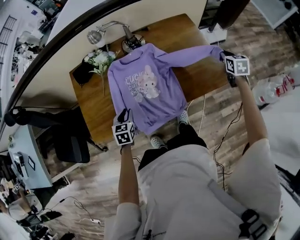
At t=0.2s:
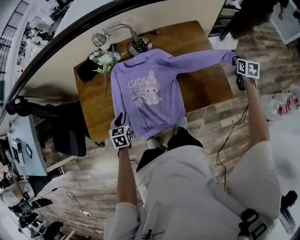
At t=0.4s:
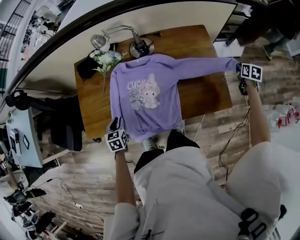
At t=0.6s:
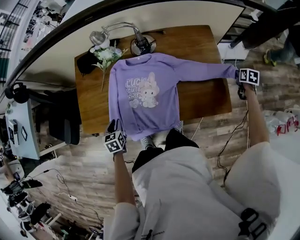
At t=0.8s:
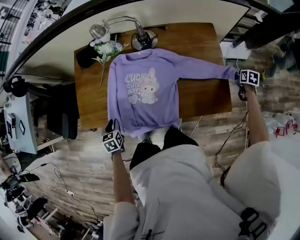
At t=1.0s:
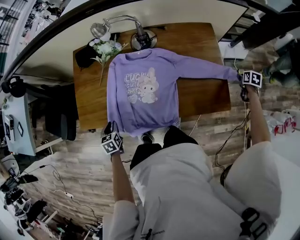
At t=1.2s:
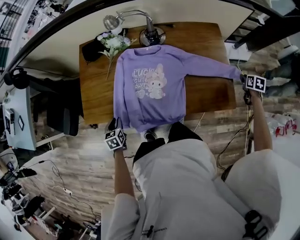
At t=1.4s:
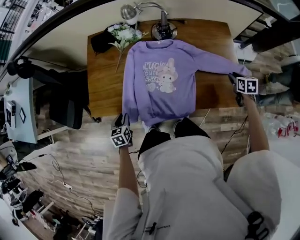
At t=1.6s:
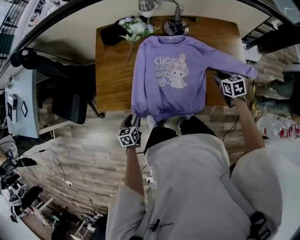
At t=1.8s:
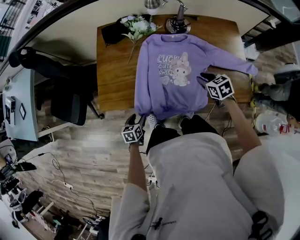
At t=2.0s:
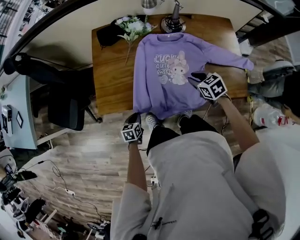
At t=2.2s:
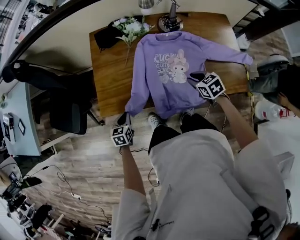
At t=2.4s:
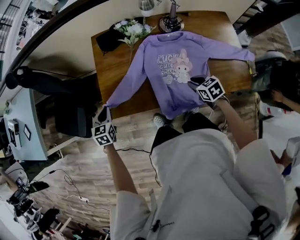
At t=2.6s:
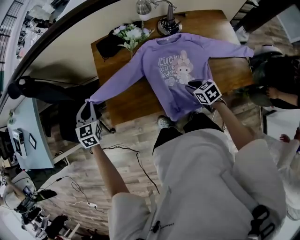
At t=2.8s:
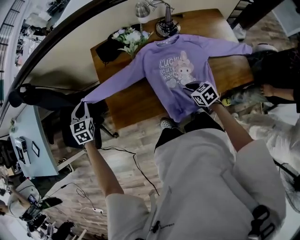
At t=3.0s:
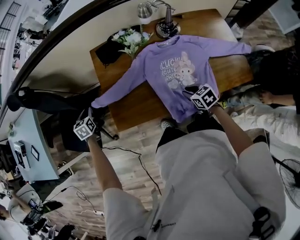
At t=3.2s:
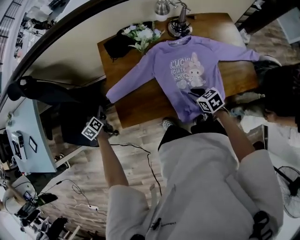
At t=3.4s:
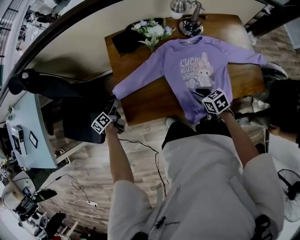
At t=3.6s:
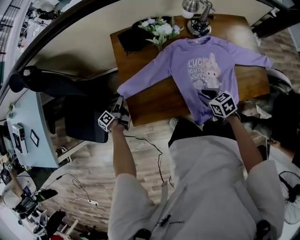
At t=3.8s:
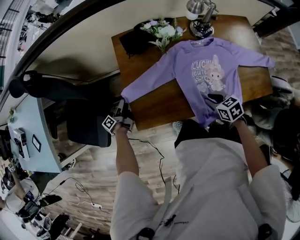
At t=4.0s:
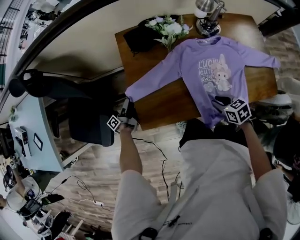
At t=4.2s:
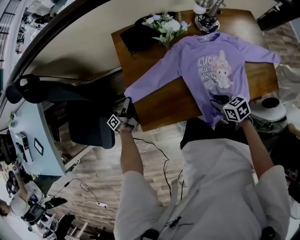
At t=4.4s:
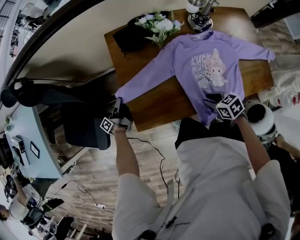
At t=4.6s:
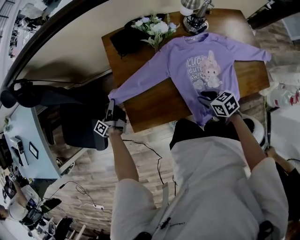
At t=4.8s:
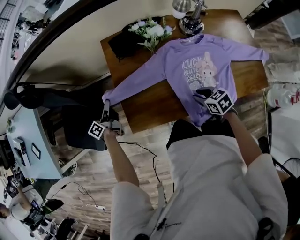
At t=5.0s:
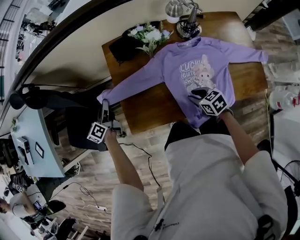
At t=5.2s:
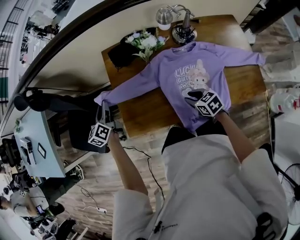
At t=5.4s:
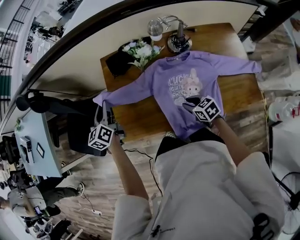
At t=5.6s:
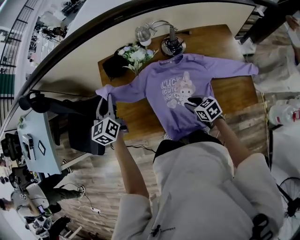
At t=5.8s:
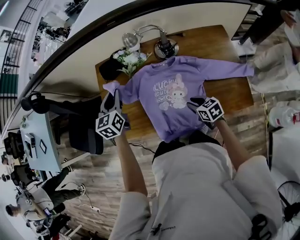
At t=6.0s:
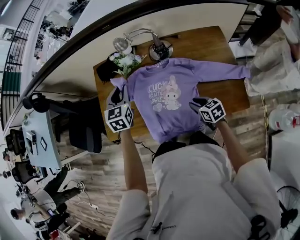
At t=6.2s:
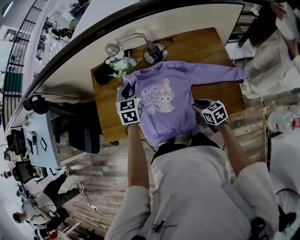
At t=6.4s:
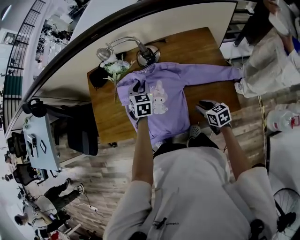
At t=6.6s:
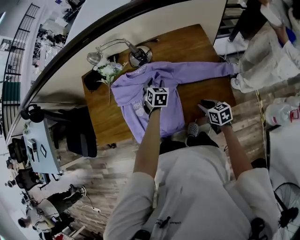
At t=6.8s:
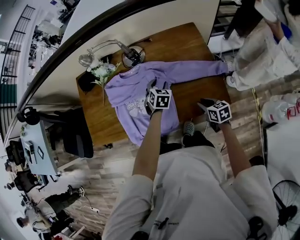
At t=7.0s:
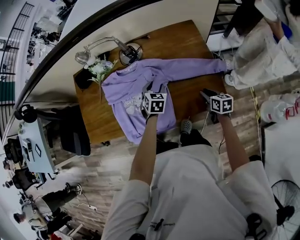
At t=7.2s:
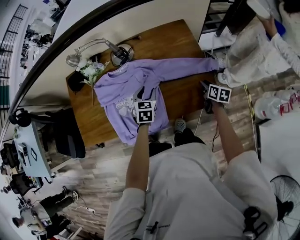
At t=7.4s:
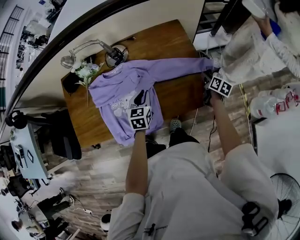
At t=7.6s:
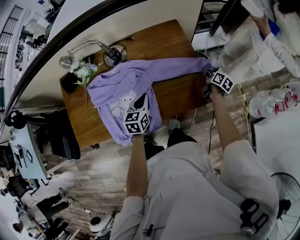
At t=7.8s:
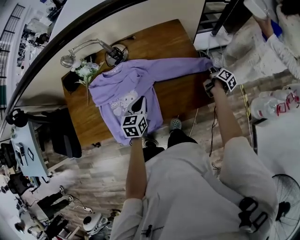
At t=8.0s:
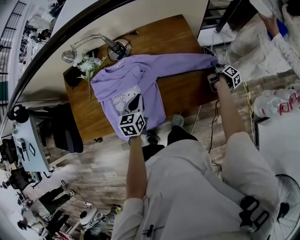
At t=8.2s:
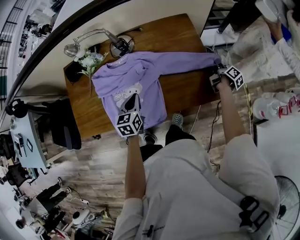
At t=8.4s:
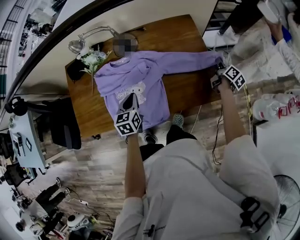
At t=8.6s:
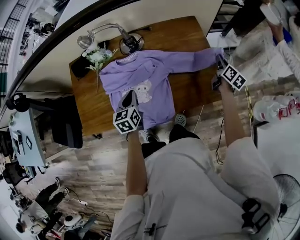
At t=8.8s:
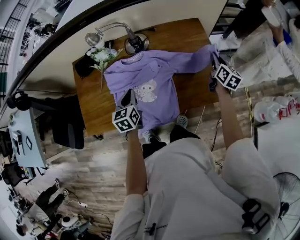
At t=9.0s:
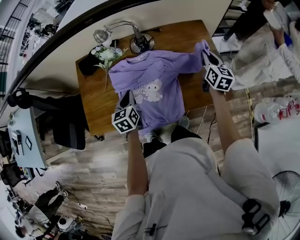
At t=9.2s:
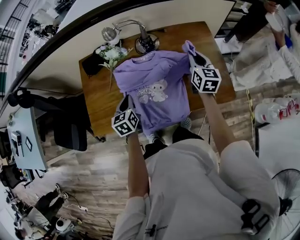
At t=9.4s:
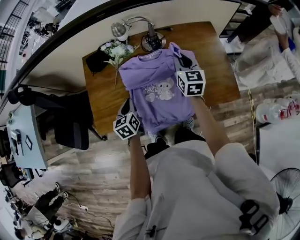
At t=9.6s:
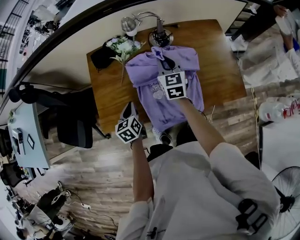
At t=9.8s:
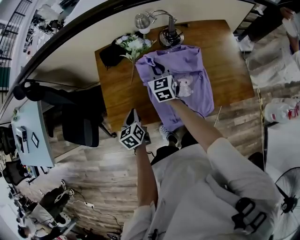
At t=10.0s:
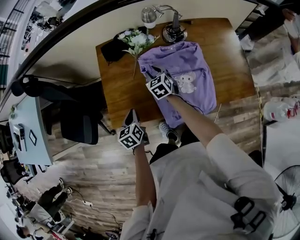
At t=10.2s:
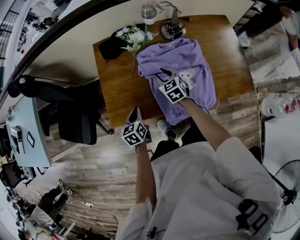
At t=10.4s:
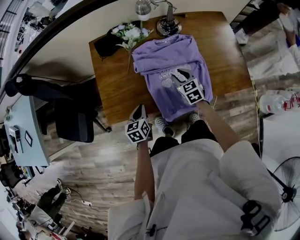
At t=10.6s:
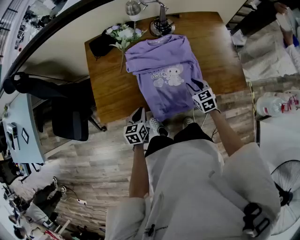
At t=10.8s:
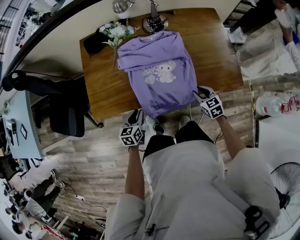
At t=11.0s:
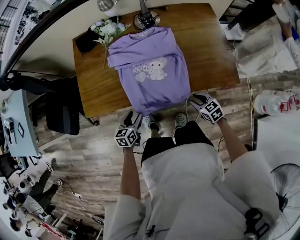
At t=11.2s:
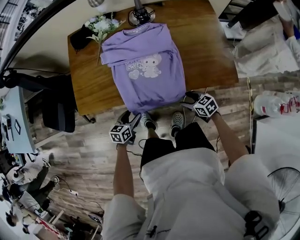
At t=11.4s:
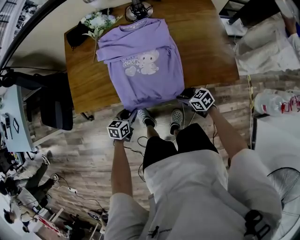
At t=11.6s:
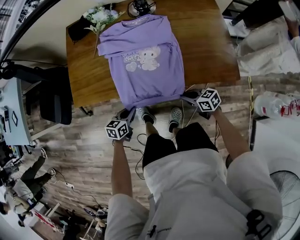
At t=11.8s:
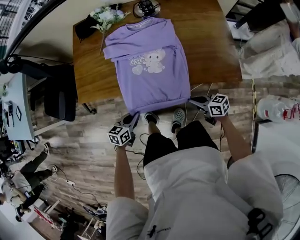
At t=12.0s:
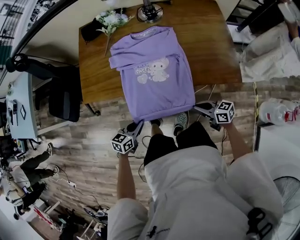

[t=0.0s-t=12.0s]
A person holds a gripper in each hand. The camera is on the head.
t=0.0s to t=1.6s: The left gripper ends up some 20 cm from where it was, and changes its angle by about 30 degrees; the right gripper shifts by roughly 25 cm, and changes its angle by some 30 degrees.
t=1.6s to t=3.0s: The left gripper goes roughly 40 cm forward and to the left, and closes up. Meanwhile the right gripper goes approximately 25 cm to the left.
t=3.0s to t=4.4s: The left gripper is displaced downward by some 15 cm, rolls counterclockwise, seen from behind, by approximately 80 degrees, and opens, then closes again, while the right gripper is displaced to the left by approximately 5 cm.
t=4.4s to t=6.0s: The left gripper shifts approximately 50 cm to the right and upward, and rotates around the line of its fingers by about 100 degrees, clockwise from behind; the right gripper moves to the right, roughly 25 cm.
t=6.0s to t=7.6s: The right gripper shifts by some 40 cm, rotates approximately 70 degrees, and opens; the left gripper moves some 35 cm, rotates approximately 30 degrees, and opens, then closes once more.
t=7.6s to t=9.0s: The right gripper travels to the left and upward by some 30 cm, turns by some 40 degrees, and closes its fingers. Meanwhile the left gripper travels to the left by some 25 cm, and turns by some 20 degrees.
t=9.0s to t=10.4s: The right gripper shifts roughly 40 cm to the left and downward, rotates roughly 40 degrees, and opens up. The left gripper heads to the left, downward and backward, covering approximately 20 cm.
t=10.4s to t=12.0s: Both grippers move backward and to the right, about 30 cm. The right gripper swivels some 50 degrees, and closes up; the left gripper changes its angle by roughly 20 degrees, and opens, then closes once more.

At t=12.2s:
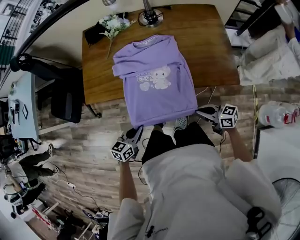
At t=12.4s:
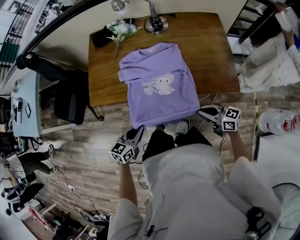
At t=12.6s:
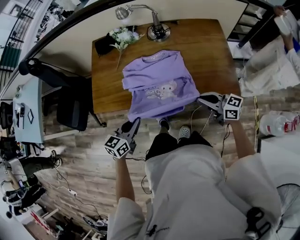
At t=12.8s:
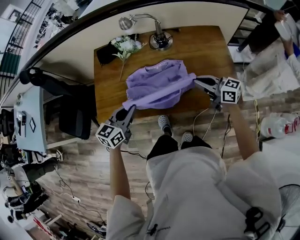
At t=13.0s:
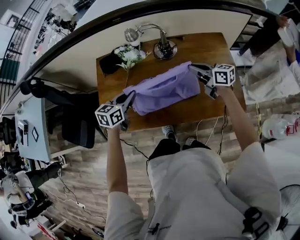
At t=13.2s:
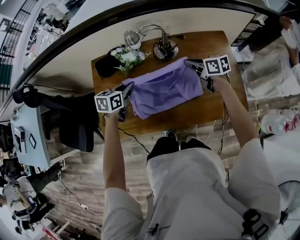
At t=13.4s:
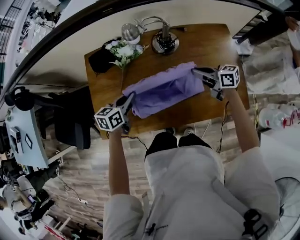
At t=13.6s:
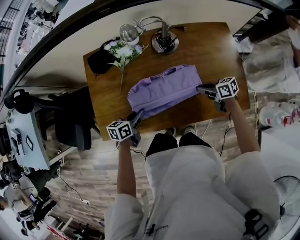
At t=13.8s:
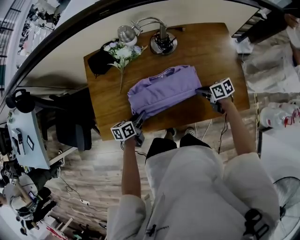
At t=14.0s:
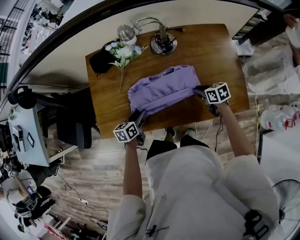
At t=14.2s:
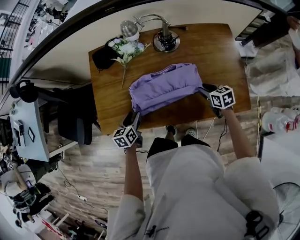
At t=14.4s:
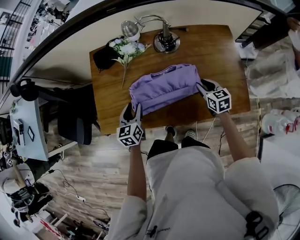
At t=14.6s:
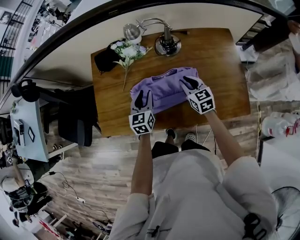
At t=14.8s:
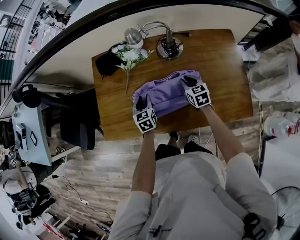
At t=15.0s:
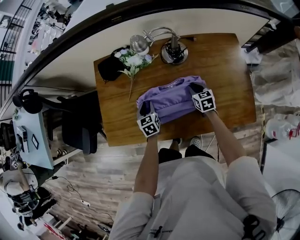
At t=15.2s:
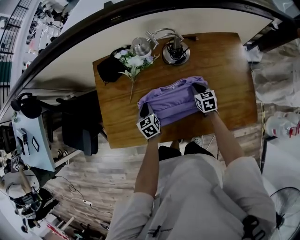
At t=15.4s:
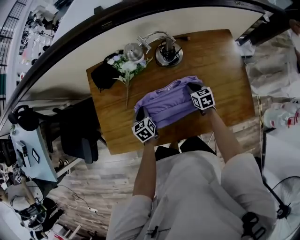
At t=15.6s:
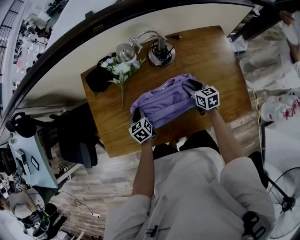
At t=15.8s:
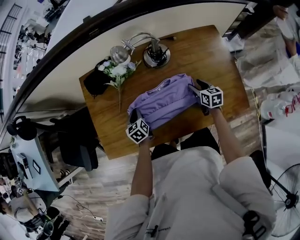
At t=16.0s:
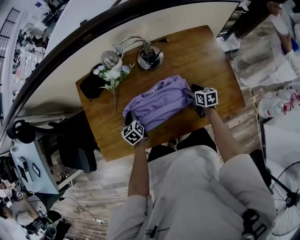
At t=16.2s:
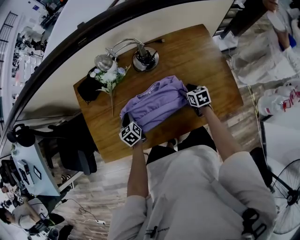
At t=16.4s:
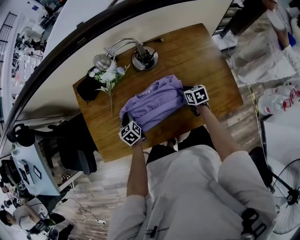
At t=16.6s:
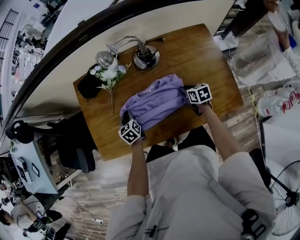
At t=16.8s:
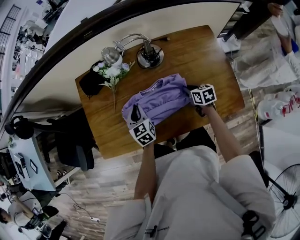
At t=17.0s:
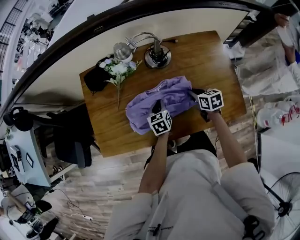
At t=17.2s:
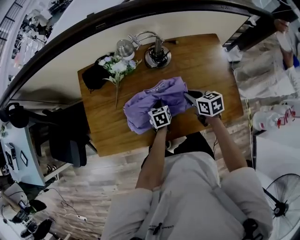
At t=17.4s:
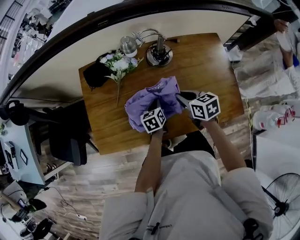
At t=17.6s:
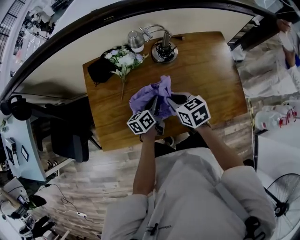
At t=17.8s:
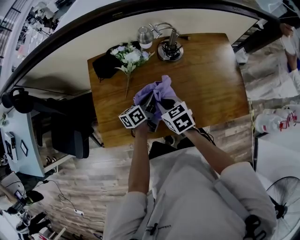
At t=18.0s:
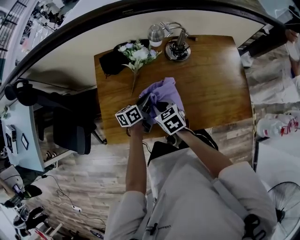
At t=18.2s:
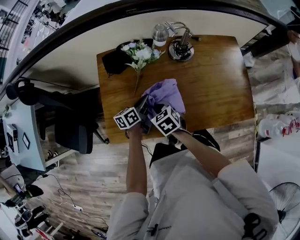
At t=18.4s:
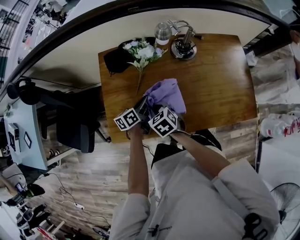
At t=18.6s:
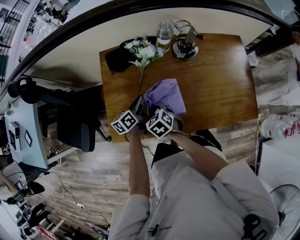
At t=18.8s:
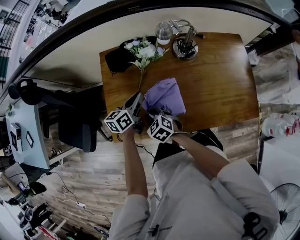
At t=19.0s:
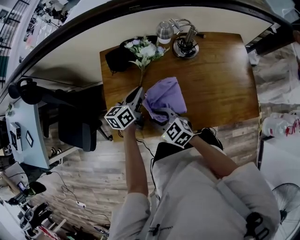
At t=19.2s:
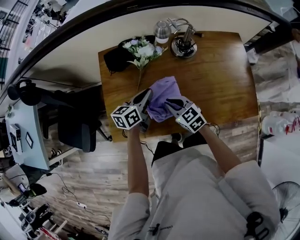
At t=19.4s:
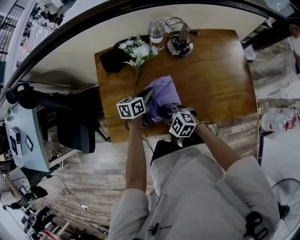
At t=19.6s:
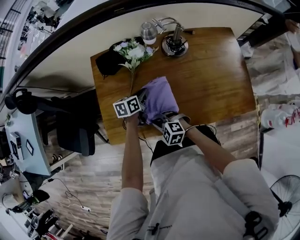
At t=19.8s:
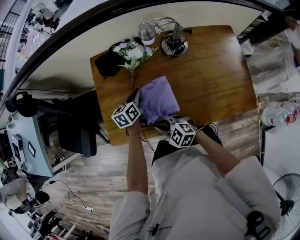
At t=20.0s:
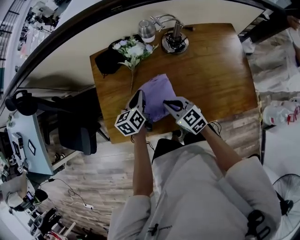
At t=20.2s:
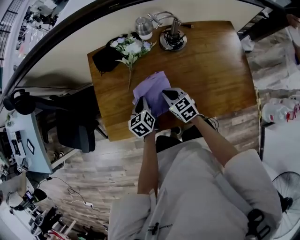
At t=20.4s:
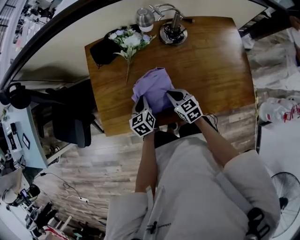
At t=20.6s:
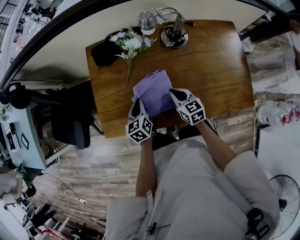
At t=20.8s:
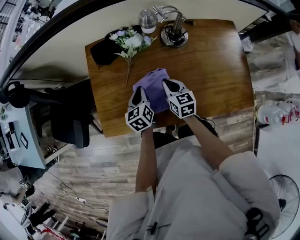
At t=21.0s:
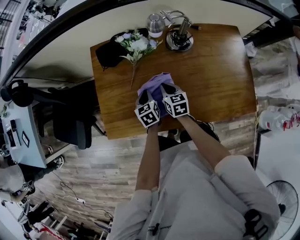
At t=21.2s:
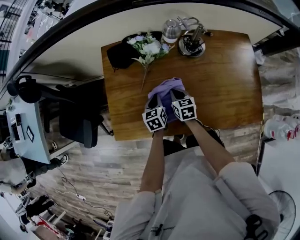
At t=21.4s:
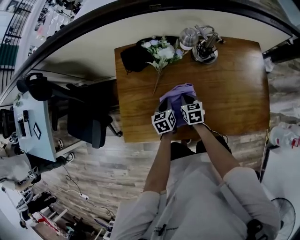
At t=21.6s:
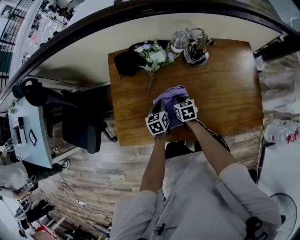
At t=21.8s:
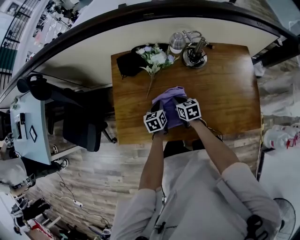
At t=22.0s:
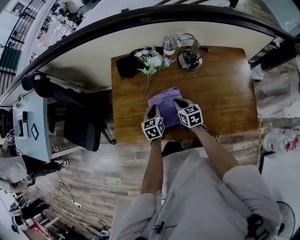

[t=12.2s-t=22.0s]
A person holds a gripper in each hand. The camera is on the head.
t=12.2s to t=13.6s: Both grippers move forward, roughly 35 cm. The right gripper turns by roughly 20 degrees; the left gripper turns by about 20 degrees.
t=13.6s to t=15.0s: The grippers both shift forward by some 10 cm. The right gripper rotates approximately 40 degrees. Meanwhile the left gripper turns by some 40 degrees.
t=15.0s to t=16.4s: The right gripper goes roughly 5 cm to the right, and opens, then closes once more.
t=16.4s to t=17.8s: The right gripper goes approximately 30 cm to the left and upward, and swivels roughly 20 degrees; the left gripper heads upward and to the right, covering approximately 10 cm, and rotates approximately 50 degrees.
t=17.8s to t=19.2s: The left gripper moves to the left, some 10 cm. The right gripper reaches about 15 cm to the left, then returns.
t=19.2s to t=20.6s: The left gripper moves up and down over some 10 cm, changing direction 2 times, and rotates approximately 40 degrees; the right gripper heads to the right, covering roughly 5 cm.
t=20.6s to t=22.0s: The right gripper goes downward and returns, roughly 5 cm each way, while the left gripper moves approximately 5 cm downward and comes back.

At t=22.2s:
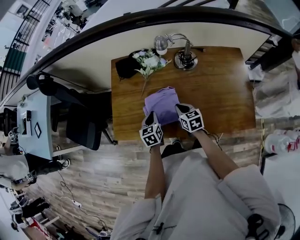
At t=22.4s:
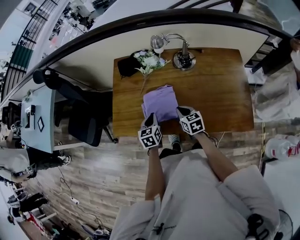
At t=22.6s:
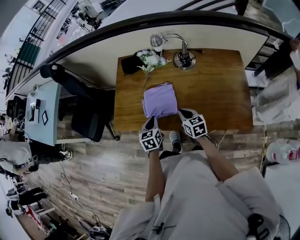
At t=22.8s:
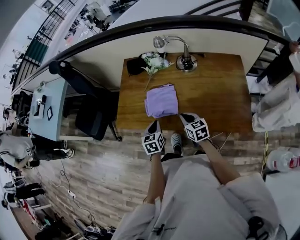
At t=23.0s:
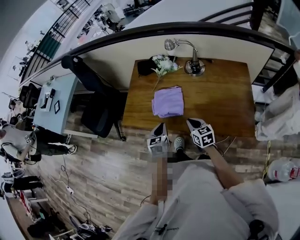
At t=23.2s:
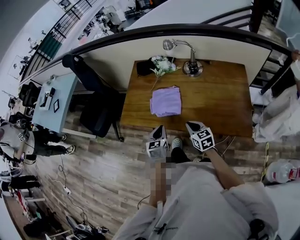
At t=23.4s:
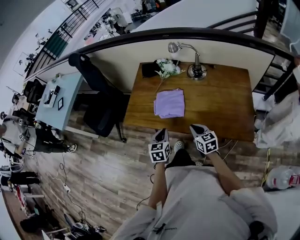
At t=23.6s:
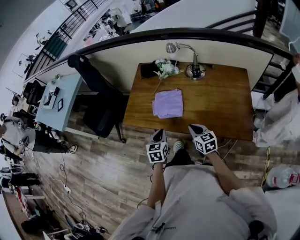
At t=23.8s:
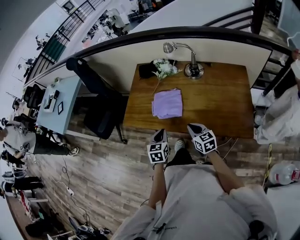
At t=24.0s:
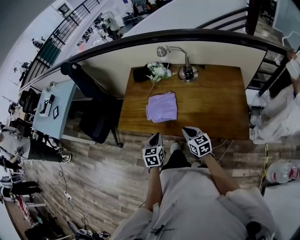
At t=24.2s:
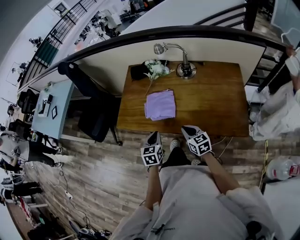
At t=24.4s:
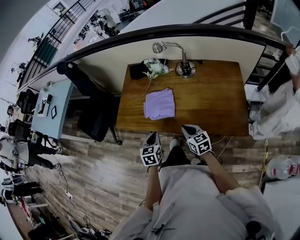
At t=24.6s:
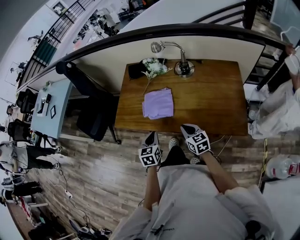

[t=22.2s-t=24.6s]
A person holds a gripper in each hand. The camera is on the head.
t=22.2s to t=23.4s: The two grippers go roughly 20 cm backward.
t=23.4s to t=24.6s: Both grippers stay put.
